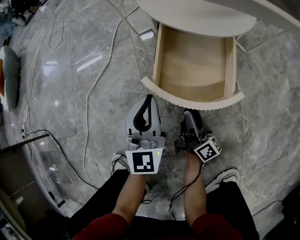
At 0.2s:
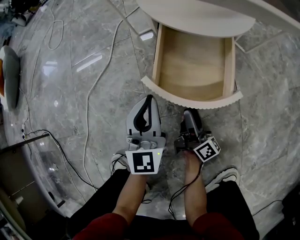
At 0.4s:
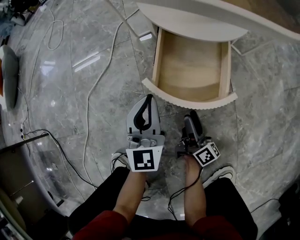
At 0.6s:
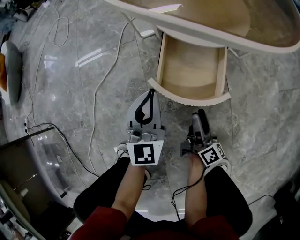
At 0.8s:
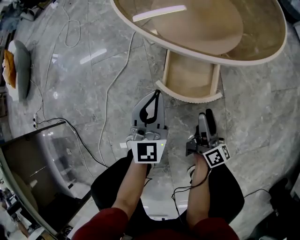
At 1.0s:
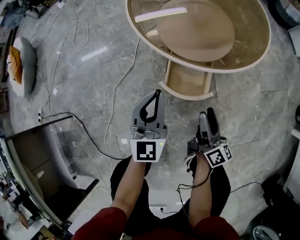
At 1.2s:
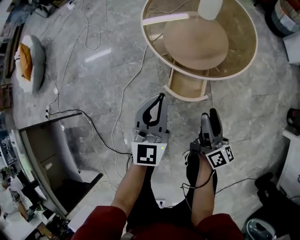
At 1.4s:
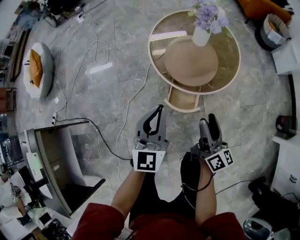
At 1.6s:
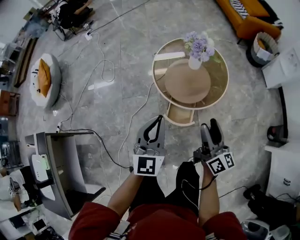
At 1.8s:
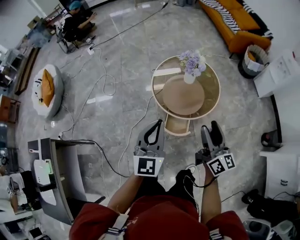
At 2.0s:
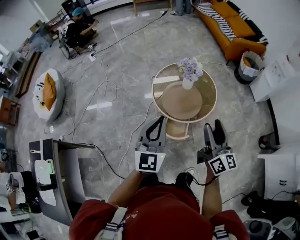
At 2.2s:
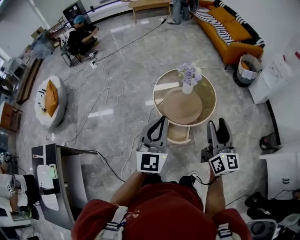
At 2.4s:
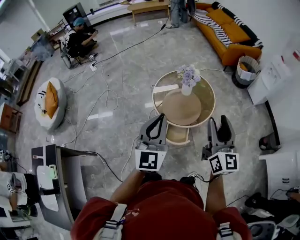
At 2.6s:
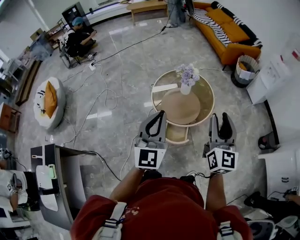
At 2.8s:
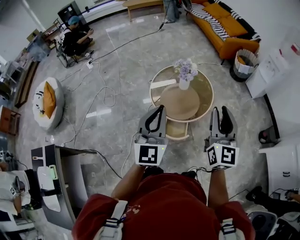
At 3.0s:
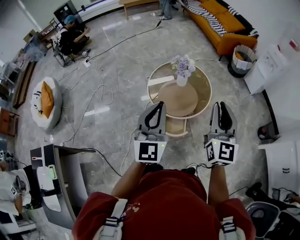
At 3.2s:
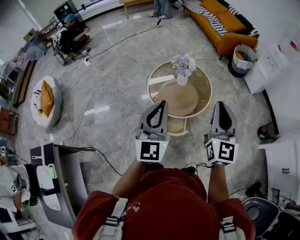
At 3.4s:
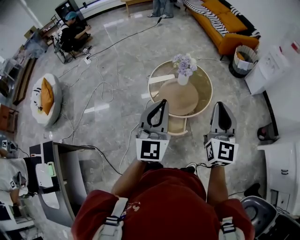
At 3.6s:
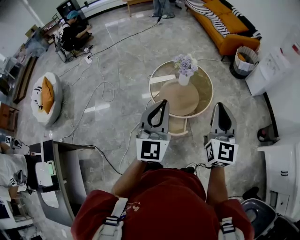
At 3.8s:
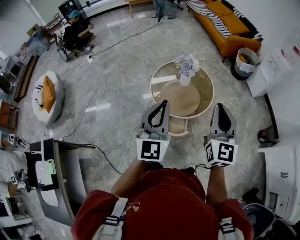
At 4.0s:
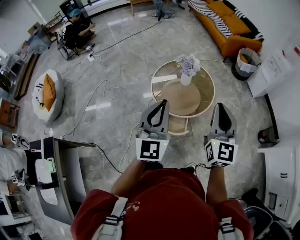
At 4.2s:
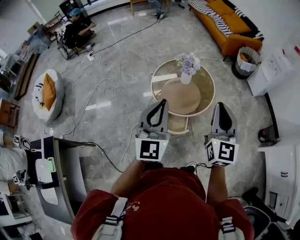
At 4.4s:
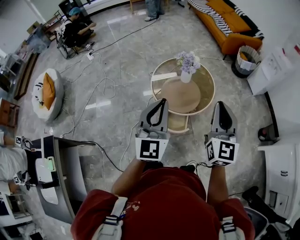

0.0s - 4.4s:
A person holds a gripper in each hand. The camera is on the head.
0.0s - 1.4s: The grippers both shift upward by some 60 cm. The right gripper turns by some 20 degrees.
1.4s - 3.0s: The two grippers go approximately 35 cm upward. The right gripper rolls counterclockwise, seen from behind, by approximately 50 degrees, and closes up.
3.0s - 4.4s: The grippers move only a little.

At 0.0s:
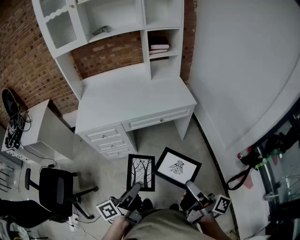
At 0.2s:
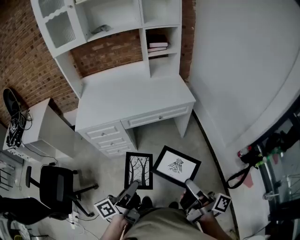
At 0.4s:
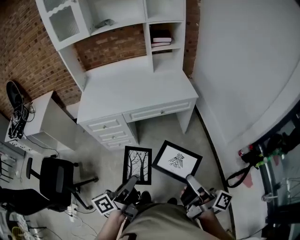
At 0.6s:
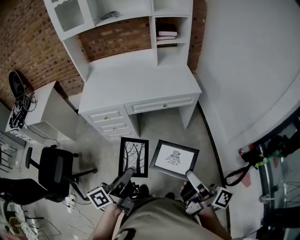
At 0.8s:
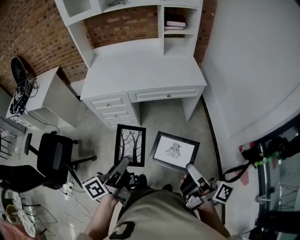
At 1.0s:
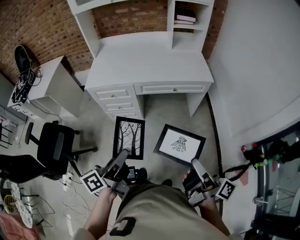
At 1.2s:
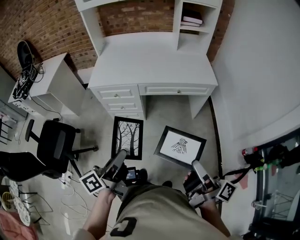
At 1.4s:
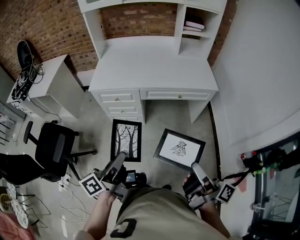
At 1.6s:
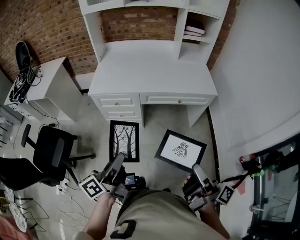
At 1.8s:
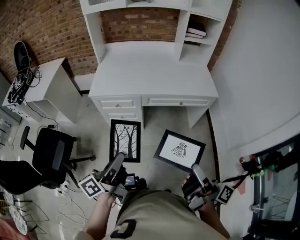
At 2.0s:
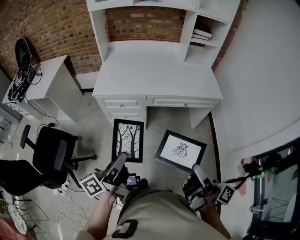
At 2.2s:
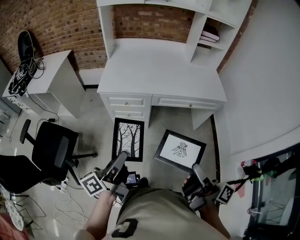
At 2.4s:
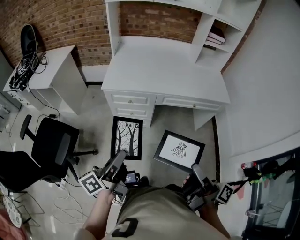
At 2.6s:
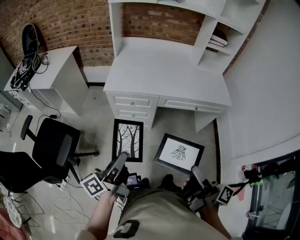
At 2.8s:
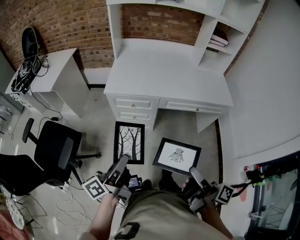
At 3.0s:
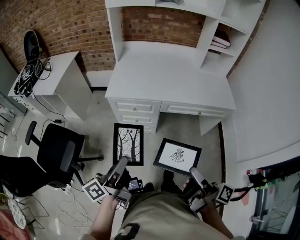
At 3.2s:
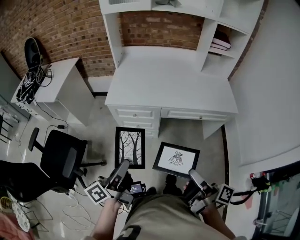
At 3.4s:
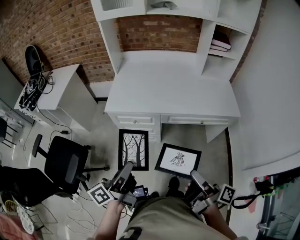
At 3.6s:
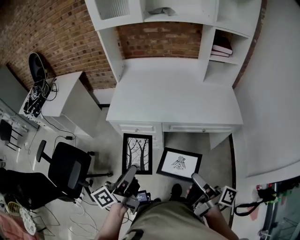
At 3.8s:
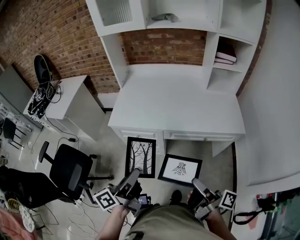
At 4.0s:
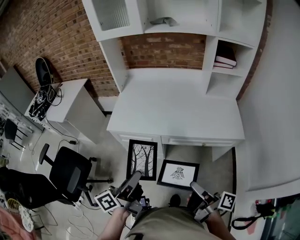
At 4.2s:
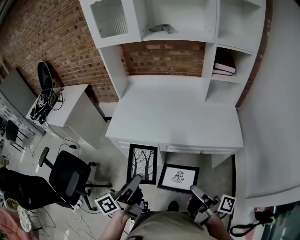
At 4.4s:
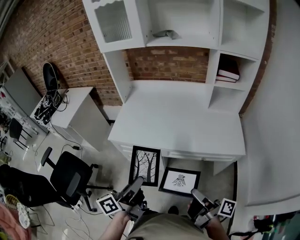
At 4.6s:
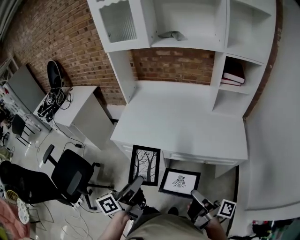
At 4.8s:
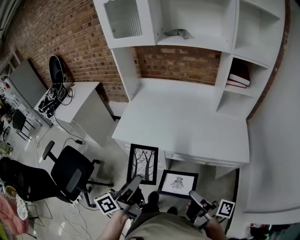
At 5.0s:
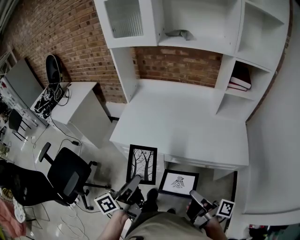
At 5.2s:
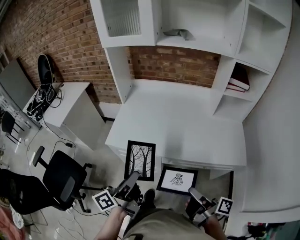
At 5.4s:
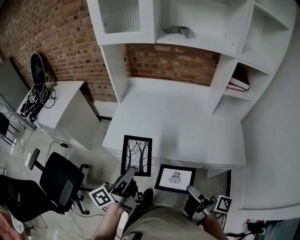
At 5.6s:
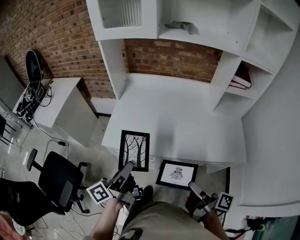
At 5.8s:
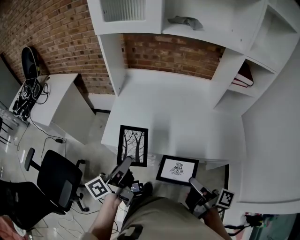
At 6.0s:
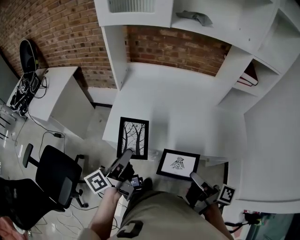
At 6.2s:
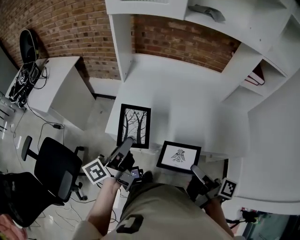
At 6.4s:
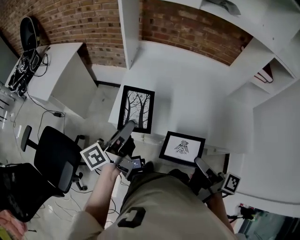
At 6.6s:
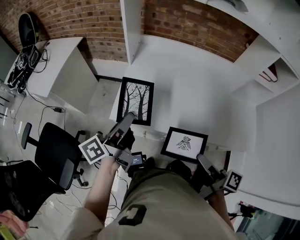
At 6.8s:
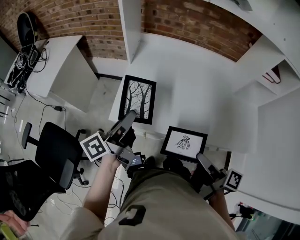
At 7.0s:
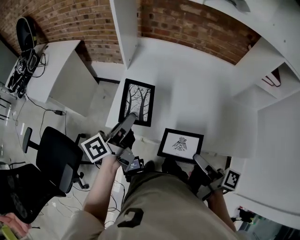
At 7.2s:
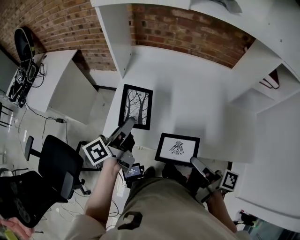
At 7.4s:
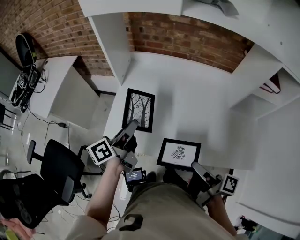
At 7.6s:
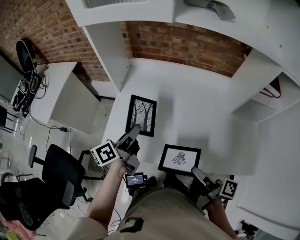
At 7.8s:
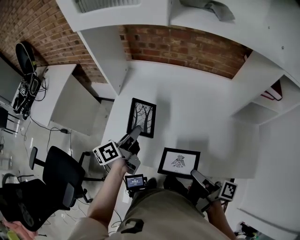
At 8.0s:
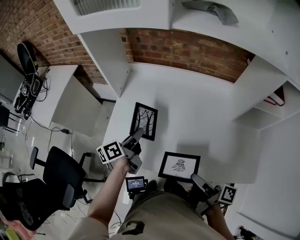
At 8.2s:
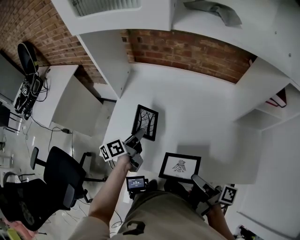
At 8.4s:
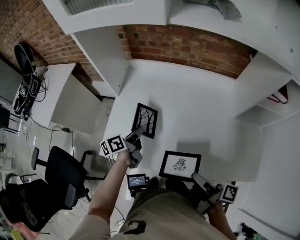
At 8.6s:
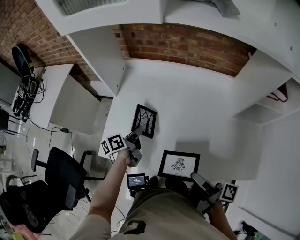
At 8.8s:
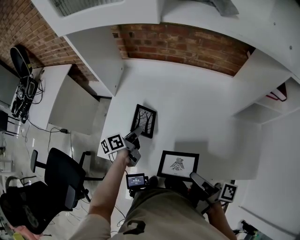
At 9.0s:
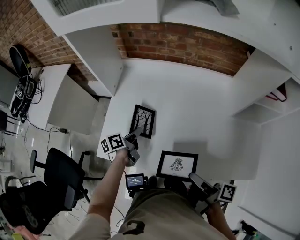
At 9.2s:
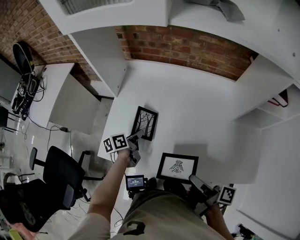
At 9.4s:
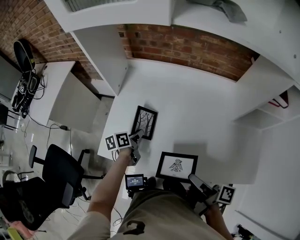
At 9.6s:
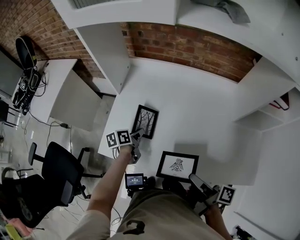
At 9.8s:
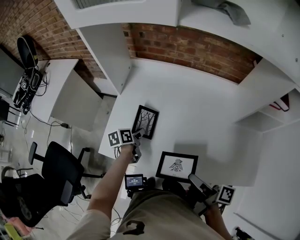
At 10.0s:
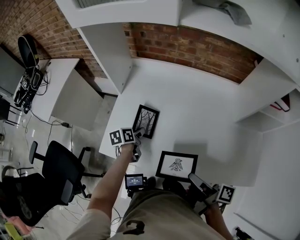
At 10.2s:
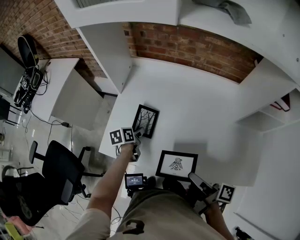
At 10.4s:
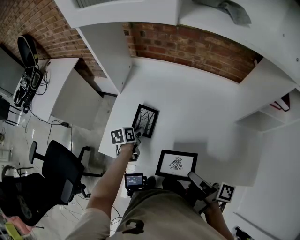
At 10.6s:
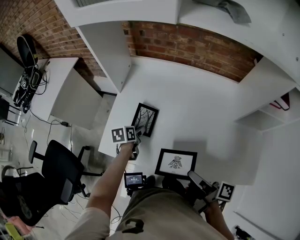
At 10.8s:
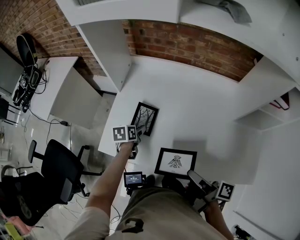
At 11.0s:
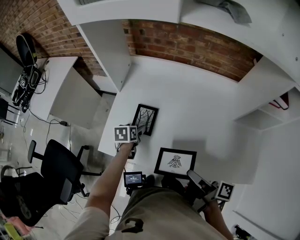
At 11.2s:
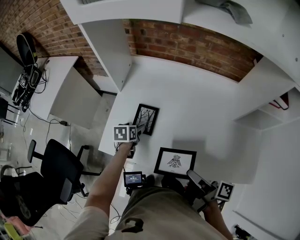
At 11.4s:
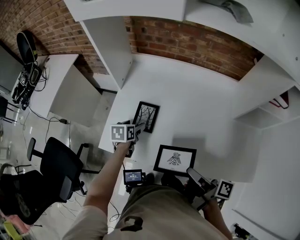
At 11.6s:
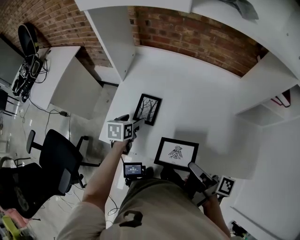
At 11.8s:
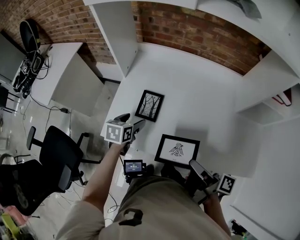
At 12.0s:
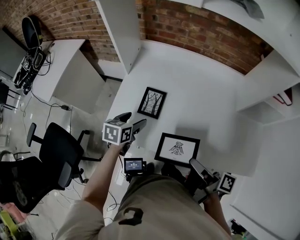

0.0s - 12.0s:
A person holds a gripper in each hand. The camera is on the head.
0.0s - 1.6s: The left gripper ends up approximately 10 cm from where it was.
1.6s - 3.0s: The left gripper ends up about 15 cm from where it was.
3.0s - 4.4s: The left gripper ends up about 25 cm from where it was.
4.4s - 6.0s: The left gripper moves about 25 cm.
6.0s - 7.6s: The left gripper changes place by some 20 cm.
7.6s - 9.0s: The left gripper shifts some 15 cm downward, and turns by some 20 degrees.
9.0s - 10.4s: The left gripper ends up some 5 cm from where it was, turns by approximately 30 degrees, and opens.
10.4s - 12.0s: The left gripper shifts roughly 10 cm upward, turns by roughly 30 degrees, and opens up.

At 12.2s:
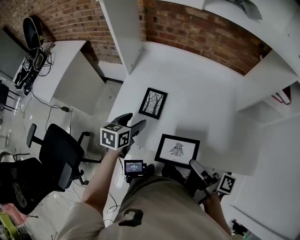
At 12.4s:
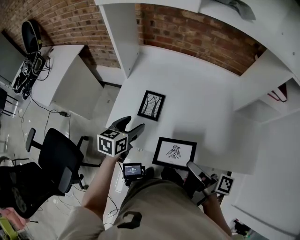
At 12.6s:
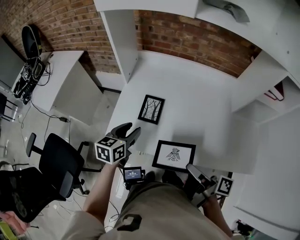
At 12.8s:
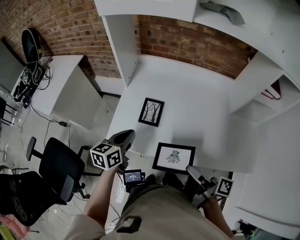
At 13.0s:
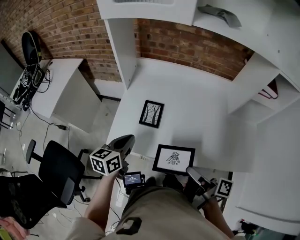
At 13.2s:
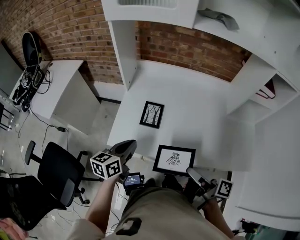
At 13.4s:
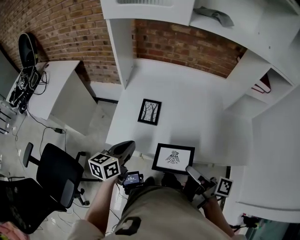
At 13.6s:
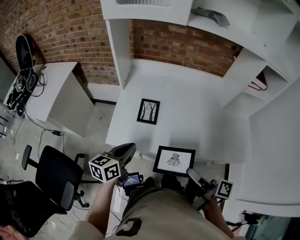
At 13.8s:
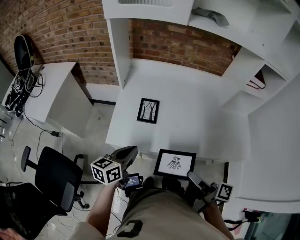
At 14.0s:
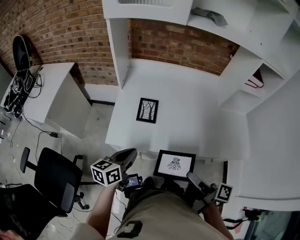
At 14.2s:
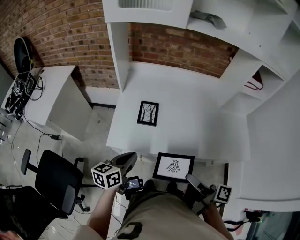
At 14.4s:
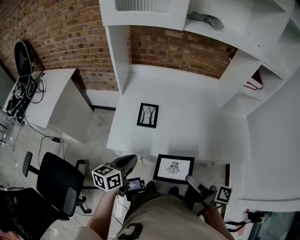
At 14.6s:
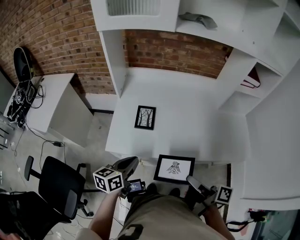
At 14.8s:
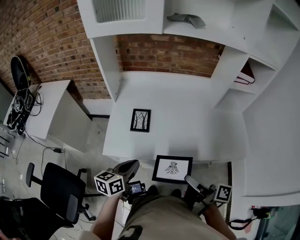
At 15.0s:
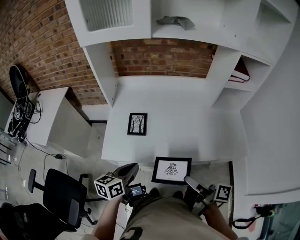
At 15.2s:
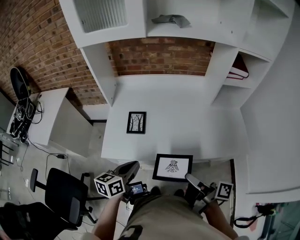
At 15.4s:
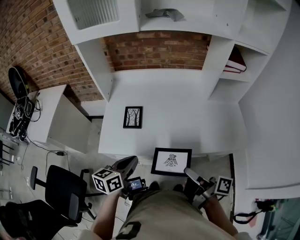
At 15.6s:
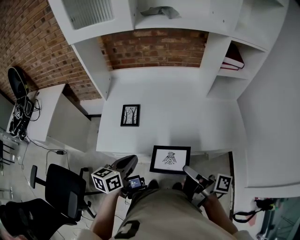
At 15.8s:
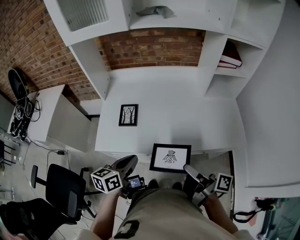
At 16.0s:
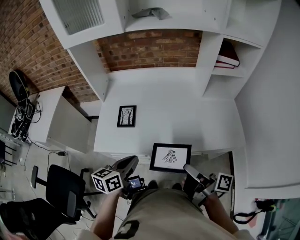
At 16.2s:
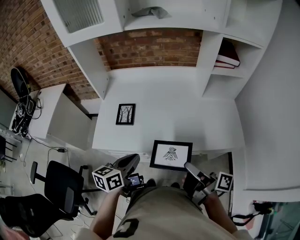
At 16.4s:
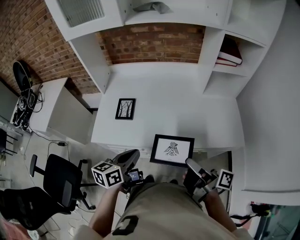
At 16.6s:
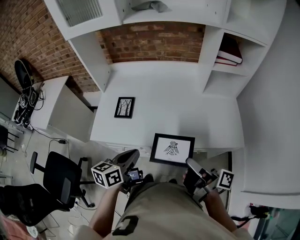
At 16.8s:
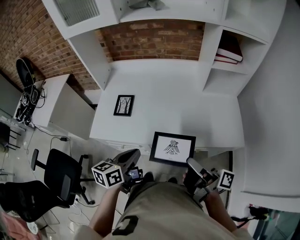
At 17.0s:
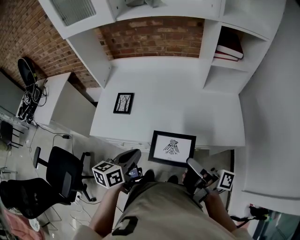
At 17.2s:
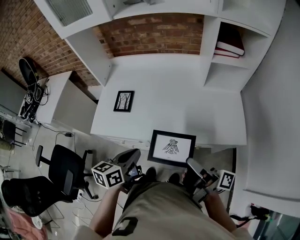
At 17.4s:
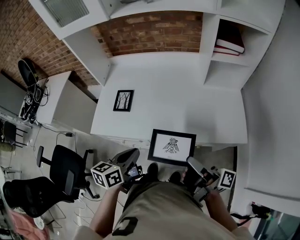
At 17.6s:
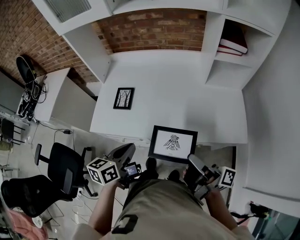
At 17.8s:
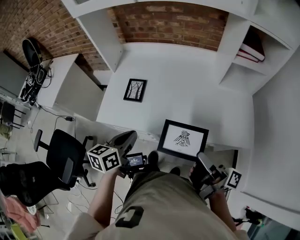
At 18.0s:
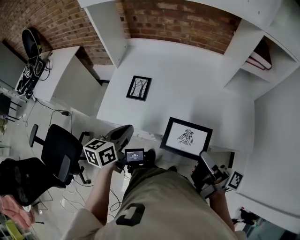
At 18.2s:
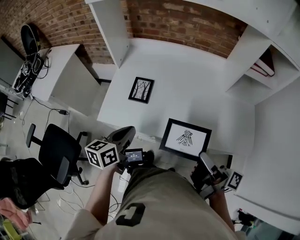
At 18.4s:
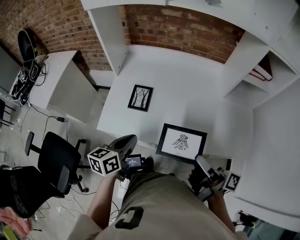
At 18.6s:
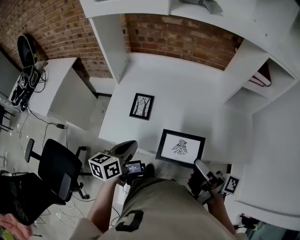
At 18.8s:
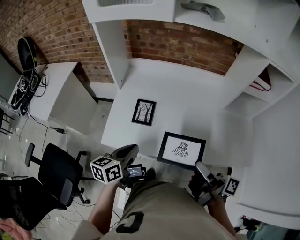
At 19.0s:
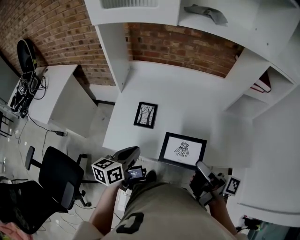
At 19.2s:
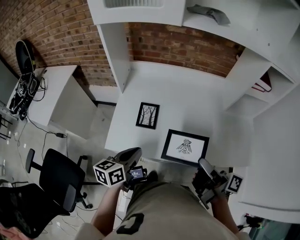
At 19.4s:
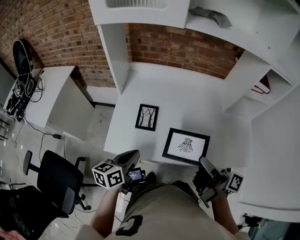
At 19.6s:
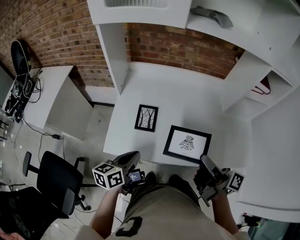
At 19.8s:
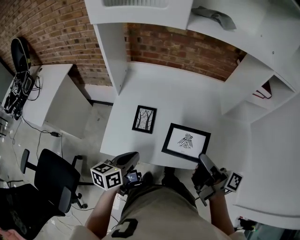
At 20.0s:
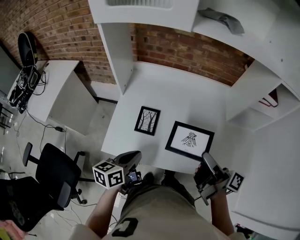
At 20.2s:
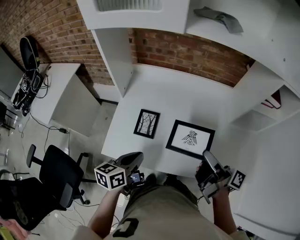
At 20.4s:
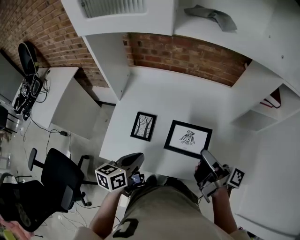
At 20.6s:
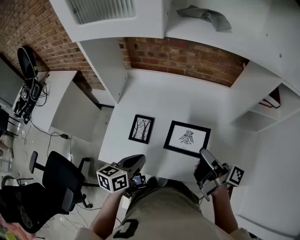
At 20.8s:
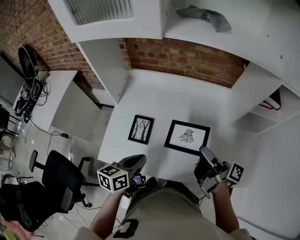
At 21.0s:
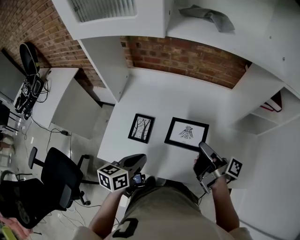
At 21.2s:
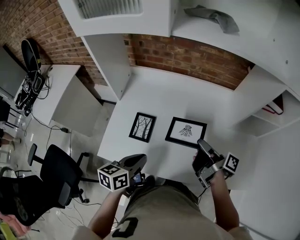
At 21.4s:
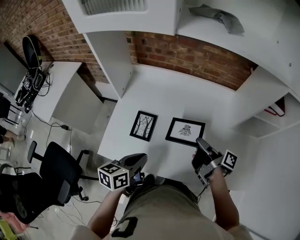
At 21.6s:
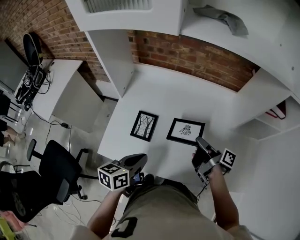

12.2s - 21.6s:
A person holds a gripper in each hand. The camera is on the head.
12.2s - 13.8s: The left gripper ends up roughly 15 cm from where it was, turns by roughly 20 degrees, and closes up.
13.8s - 15.4s: The left gripper ends up some 10 cm from where it was.
15.4s - 17.0s: The left gripper changes place by some 15 cm.
17.0s - 18.4s: The left gripper moves roughly 15 cm.
18.4s - 20.0s: The left gripper ends up roughly 5 cm from where it was.
20.0s - 21.6s: The left gripper shifts by roughly 5 cm.
